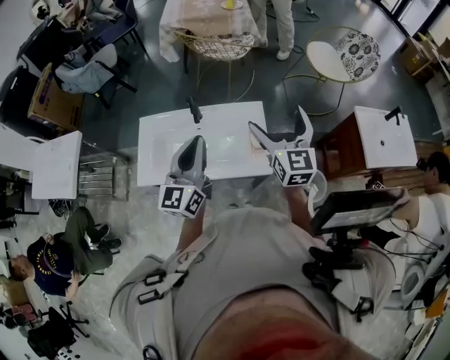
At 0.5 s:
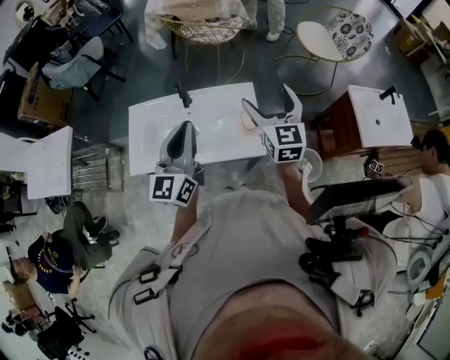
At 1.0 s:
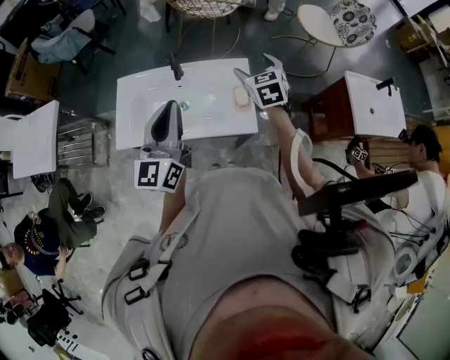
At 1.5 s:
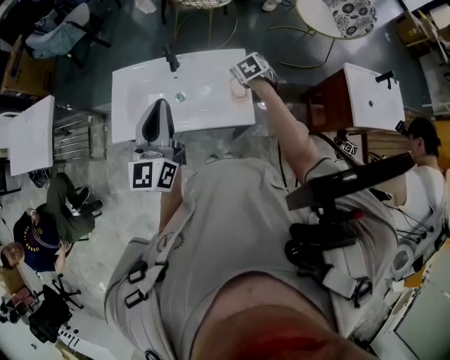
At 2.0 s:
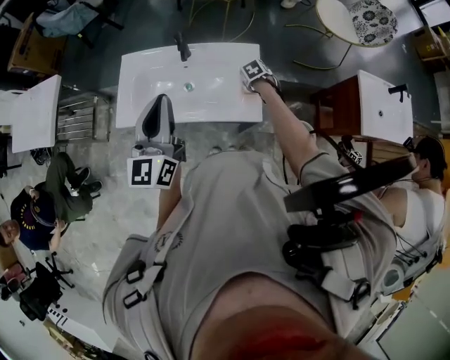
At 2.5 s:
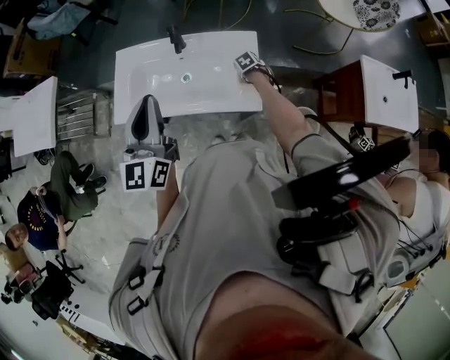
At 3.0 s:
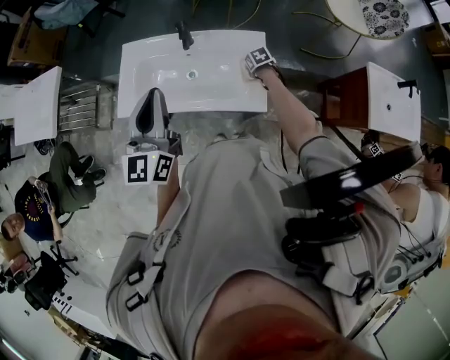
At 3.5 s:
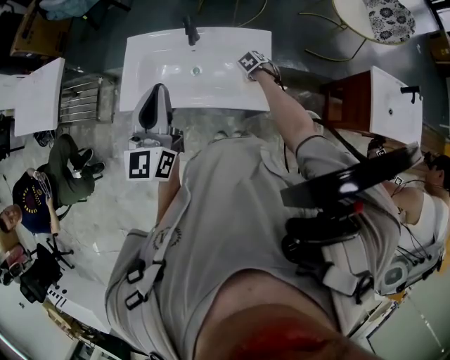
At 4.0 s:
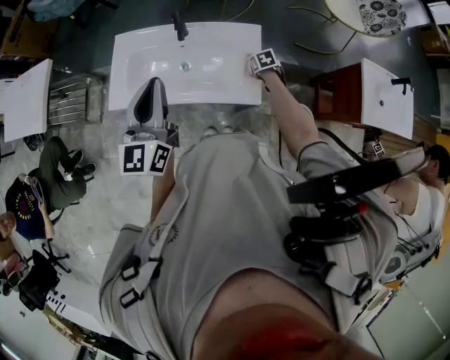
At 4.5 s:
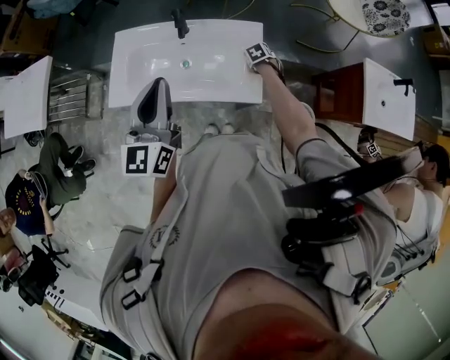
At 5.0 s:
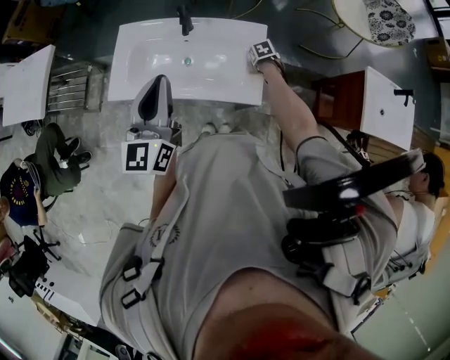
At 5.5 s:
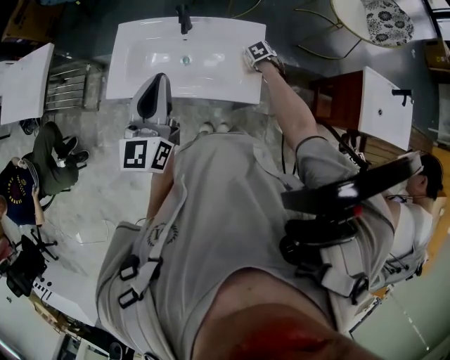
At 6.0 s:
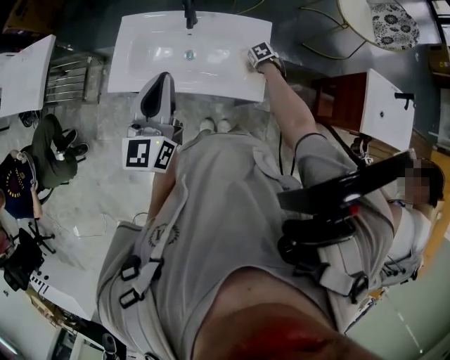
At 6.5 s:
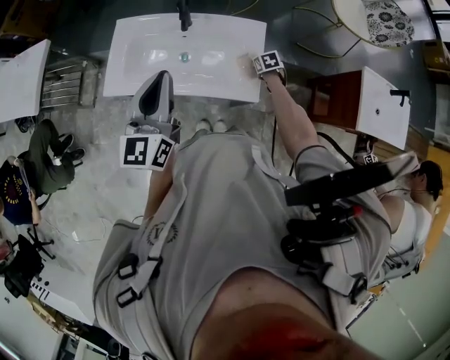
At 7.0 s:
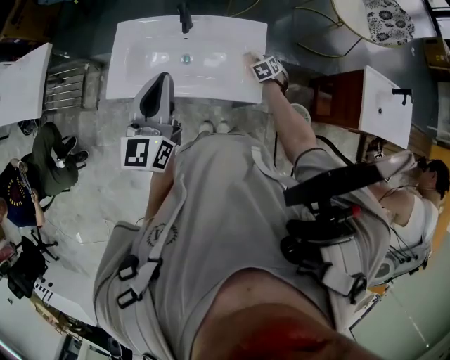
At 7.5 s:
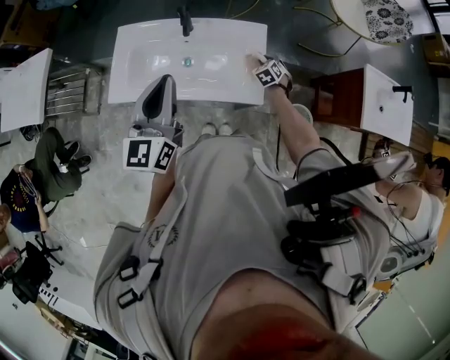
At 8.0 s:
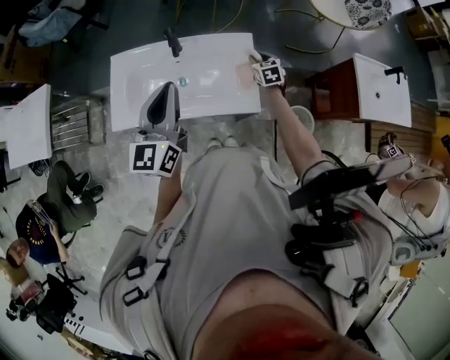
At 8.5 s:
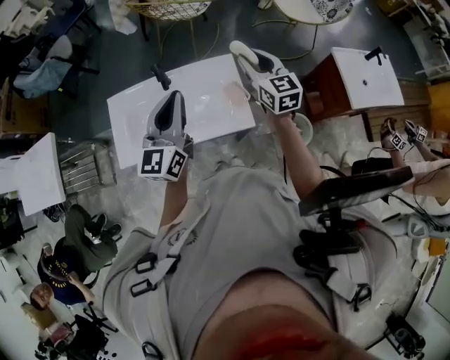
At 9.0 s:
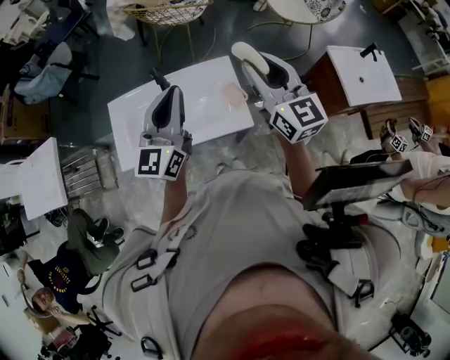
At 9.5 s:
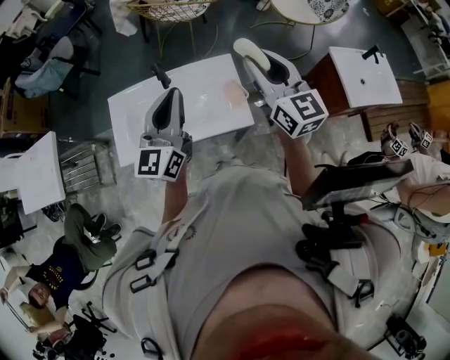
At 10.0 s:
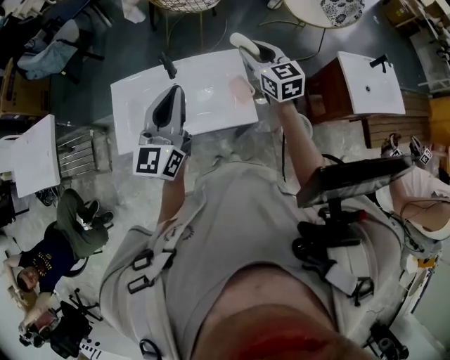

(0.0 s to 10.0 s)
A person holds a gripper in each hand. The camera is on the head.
0.0 s - 2.0 s: The left gripper shifts by some 5 cm; the right gripper heads downward, covering approximately 40 cm, and tilts its fingers about 70 degrees downward.
2.0 s - 4.0 s: The right gripper closes its fingers.
4.0 s - 6.0 s: The right gripper opens.
6.0 s - 8.0 s: The left gripper shifts by about 5 cm; the right gripper moves upward, approximately 15 cm, and tips its fingers upward by approximately 40 degrees.
8.0 s - 10.0 s: The right gripper goes approximately 30 cm upward, and rotates some 30 degrees. Meanwhile the left gripper goes about 5 cm upward.

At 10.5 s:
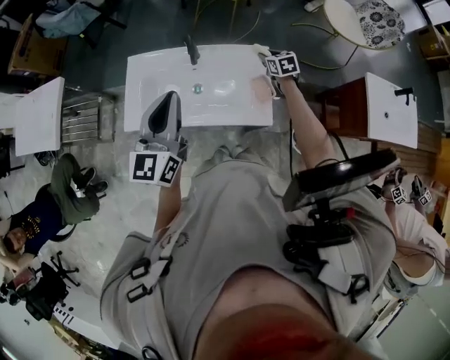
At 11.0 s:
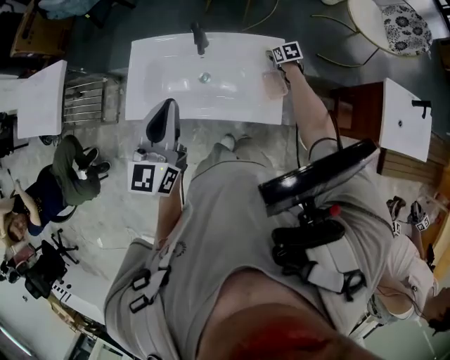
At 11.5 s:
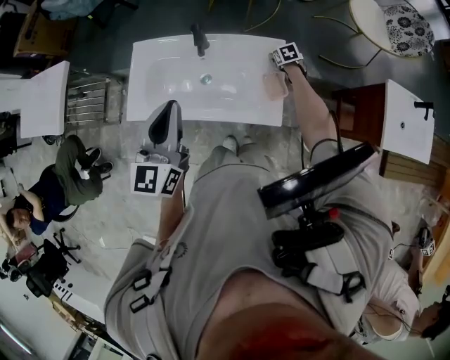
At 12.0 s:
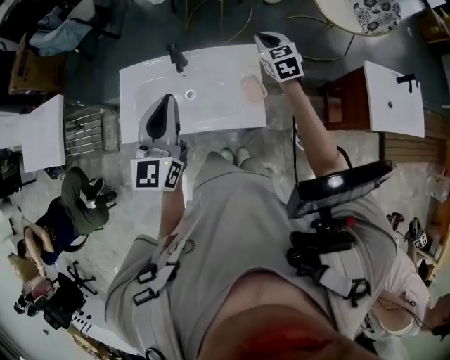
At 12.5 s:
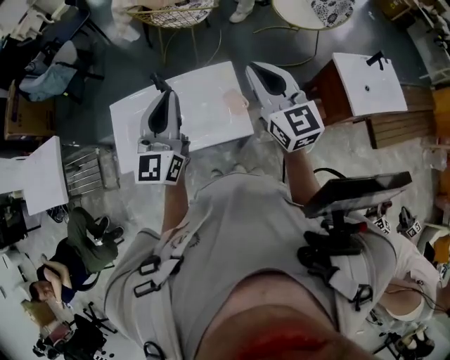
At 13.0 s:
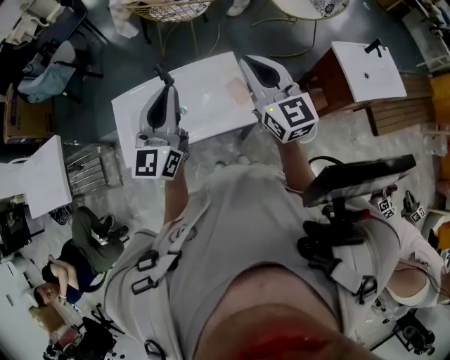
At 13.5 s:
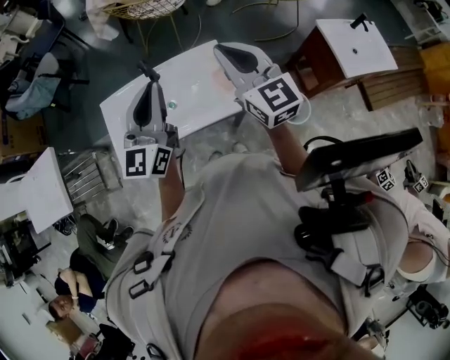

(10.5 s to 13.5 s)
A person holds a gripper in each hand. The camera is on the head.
10.5 s - 12.0 s: The left gripper travels to the right by about 5 cm. The right gripper heads upward, covering roughly 15 cm, and swivels some 20 degrees.
12.0 s - 13.5 s: The right gripper heads backward and upward, covering approximately 30 cm, and turns by about 30 degrees; the left gripper goes about 5 cm upward.

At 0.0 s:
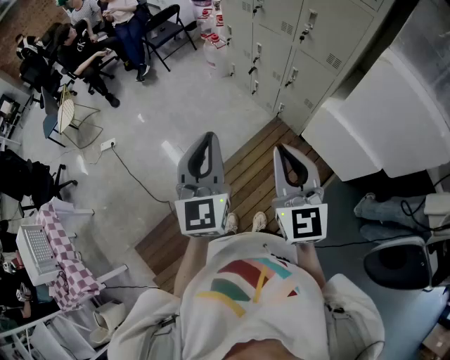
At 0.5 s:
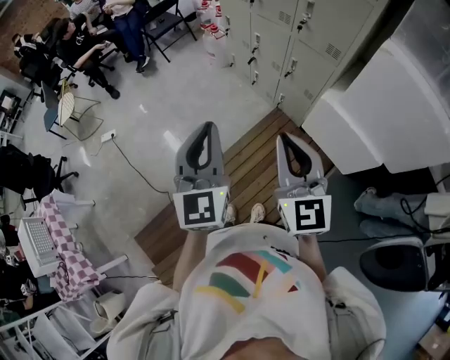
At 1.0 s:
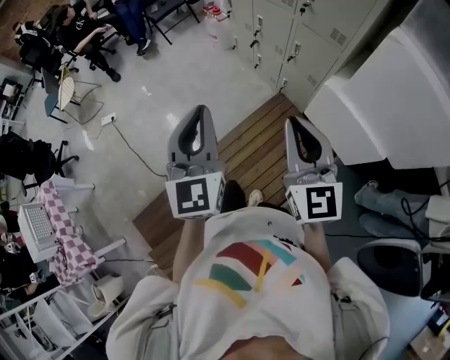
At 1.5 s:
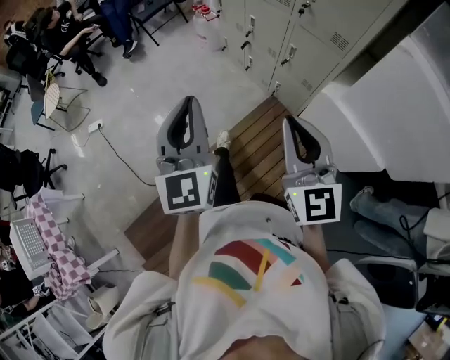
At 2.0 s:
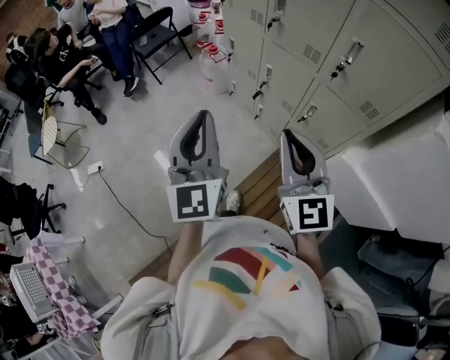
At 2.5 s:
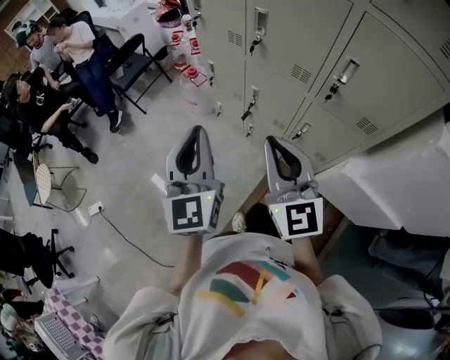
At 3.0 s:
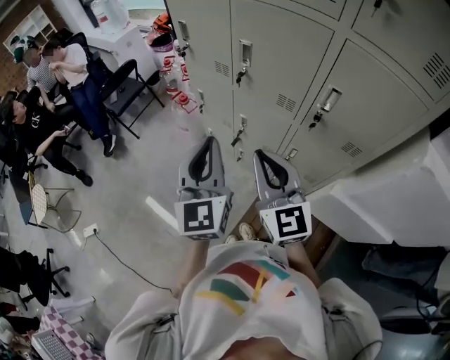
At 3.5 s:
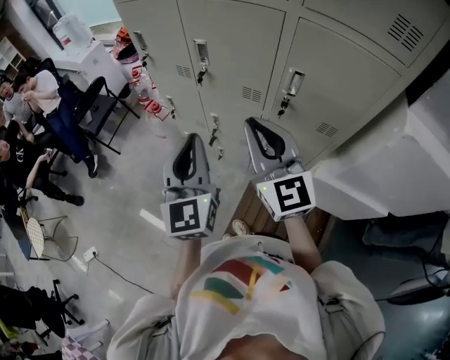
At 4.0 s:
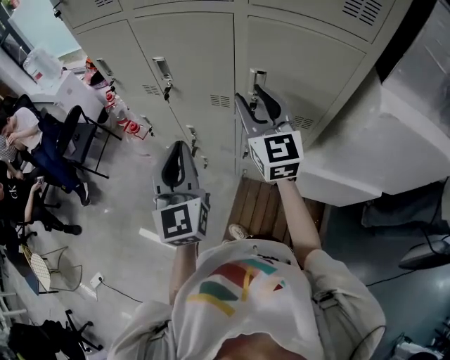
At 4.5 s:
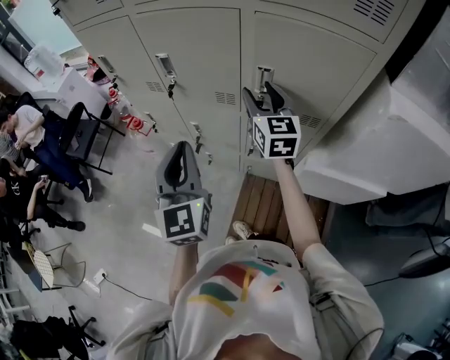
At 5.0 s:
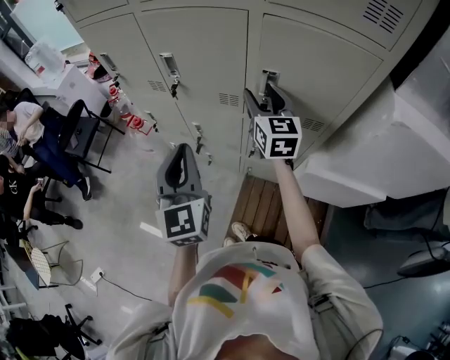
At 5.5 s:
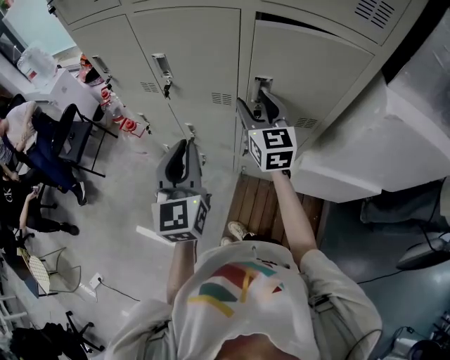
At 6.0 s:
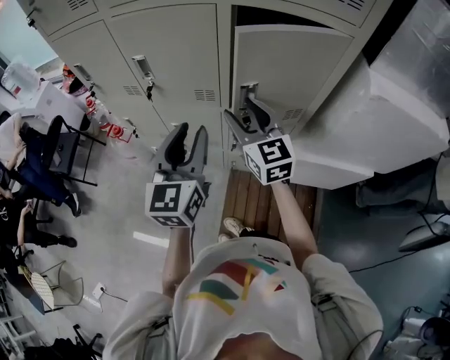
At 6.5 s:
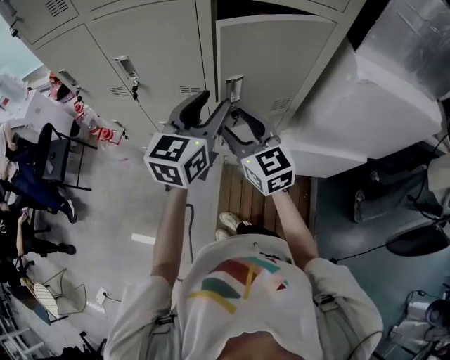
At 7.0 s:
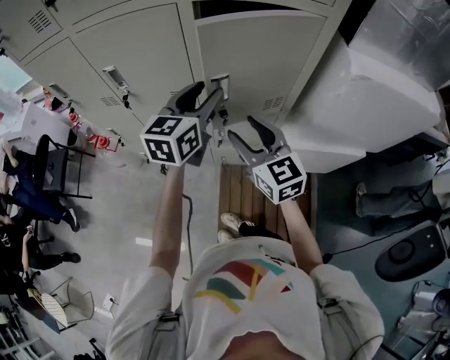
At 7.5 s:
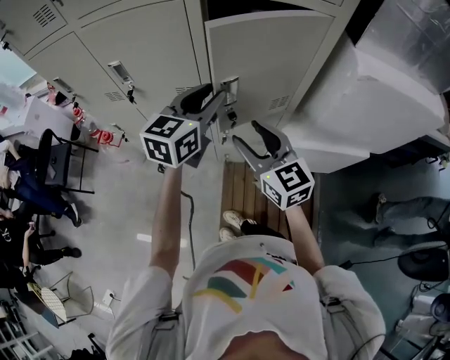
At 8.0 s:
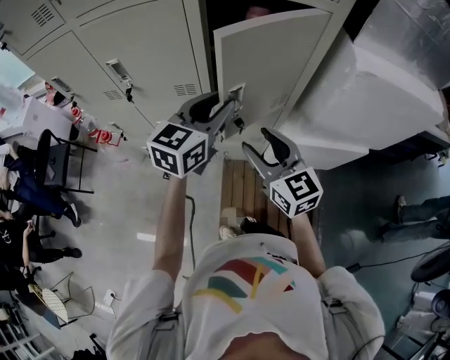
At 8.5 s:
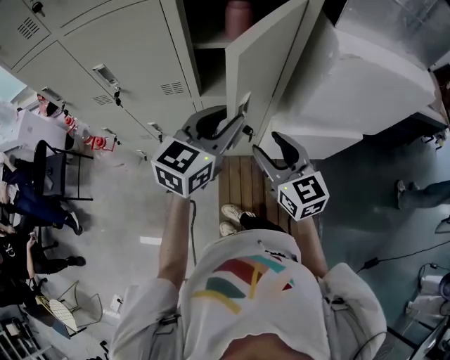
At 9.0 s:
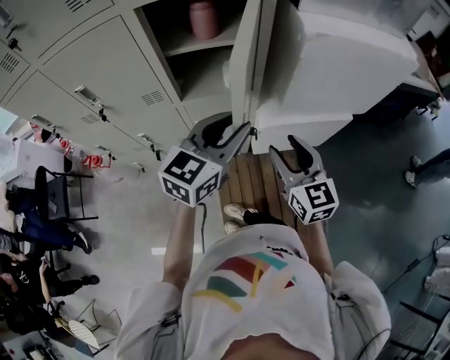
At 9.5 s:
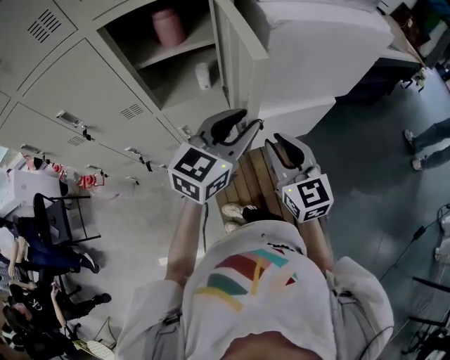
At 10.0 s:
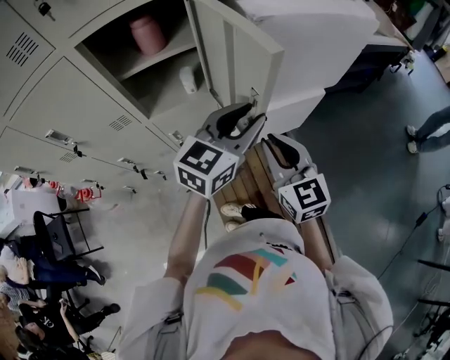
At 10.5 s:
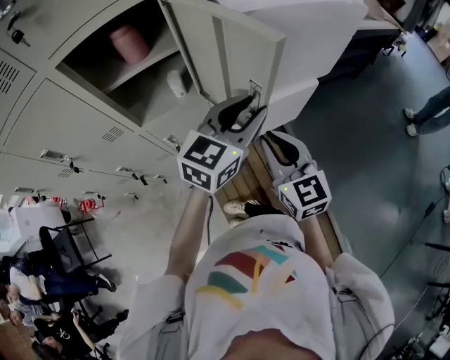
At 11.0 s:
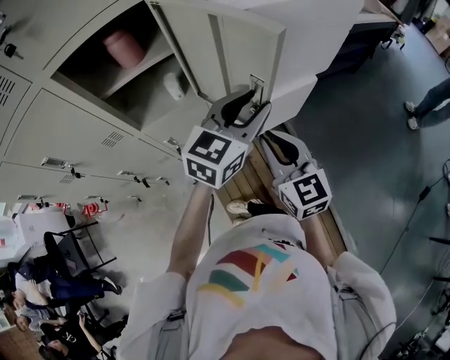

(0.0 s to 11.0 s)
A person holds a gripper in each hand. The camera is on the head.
0.0 s - 2.0 s: The two grippers go some 35 cm forward.
2.0 s - 3.5 s: The left gripper goes roughly 20 cm forward and to the right. The right gripper is displaced forward by approximately 20 cm.
3.5 s - 5.5 s: The left gripper moves roughly 5 cm. Meanwhile the right gripper goes approximately 20 cm forward, to the right and downward, changes its angle by approximately 20 degrees, and opens its fingers.
5.5 s - 7.5 s: The right gripper is displaced backward and to the right by roughly 15 cm; the left gripper travels to the right and forward by approximately 20 cm, swivels about 40 degrees, and opens.
7.5 s - 9.0 s: The grippers both shift to the right and backward by roughly 20 cm. The right gripper changes its angle by about 20 degrees.
9.0 s - 11.0 s: The right gripper shifts roughly 5 cm to the right, and closes. The left gripper moves to the right and forward, approximately 15 cm.

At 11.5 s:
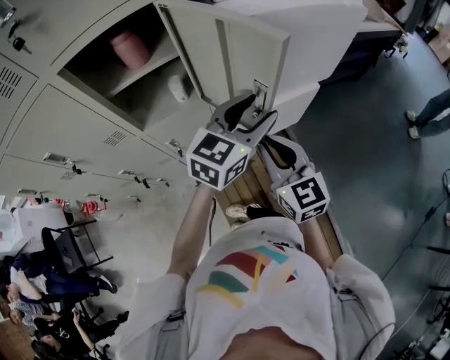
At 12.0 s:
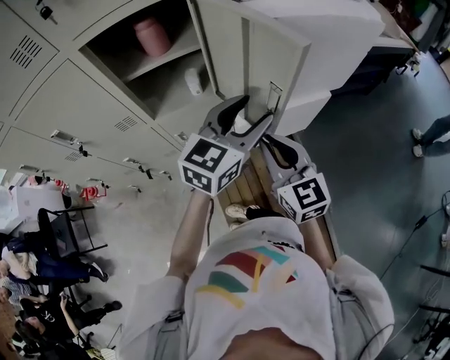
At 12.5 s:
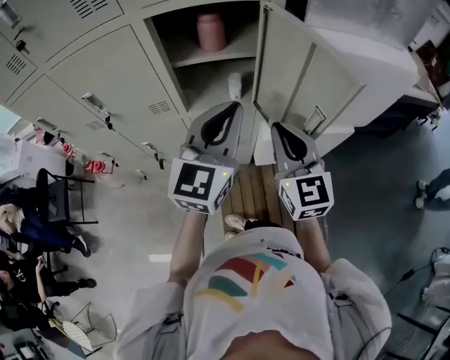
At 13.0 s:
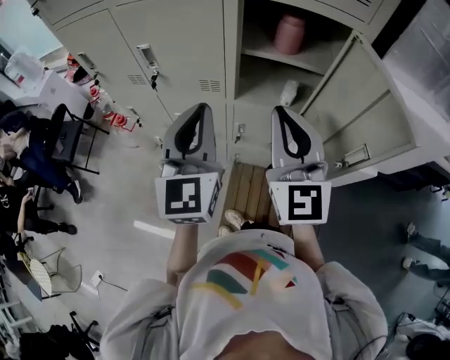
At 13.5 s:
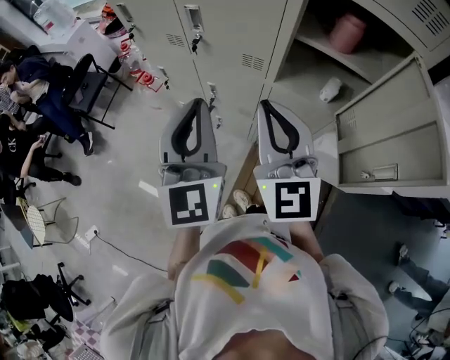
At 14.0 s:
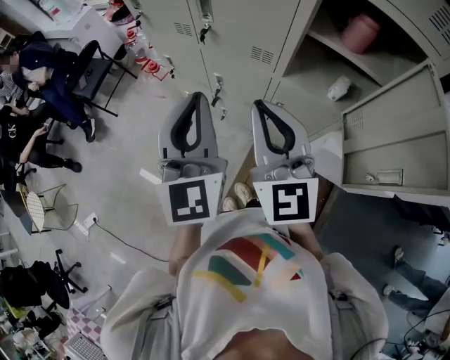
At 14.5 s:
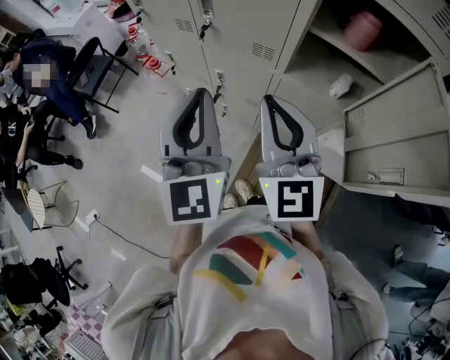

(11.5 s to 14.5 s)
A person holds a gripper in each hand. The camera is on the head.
11.5 s - 13.0 s: The right gripper changes place by approximately 25 cm, and turns by roughly 30 degrees; the left gripper changes place by approximately 40 cm, swivels some 70 degrees, and closes up.
13.0 s - 14.5 s: Both grippers travel together to the left, approximately 10 cm.
